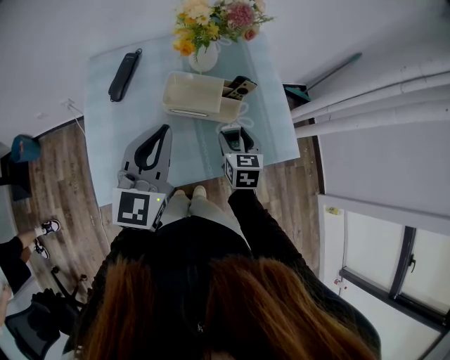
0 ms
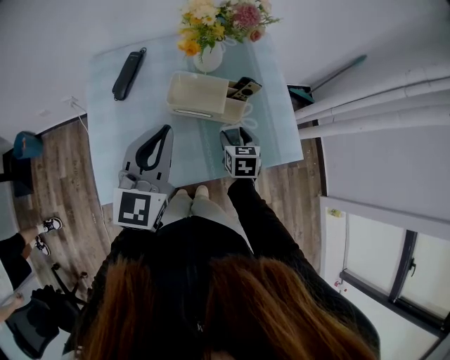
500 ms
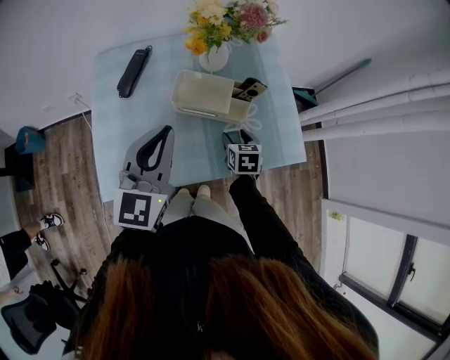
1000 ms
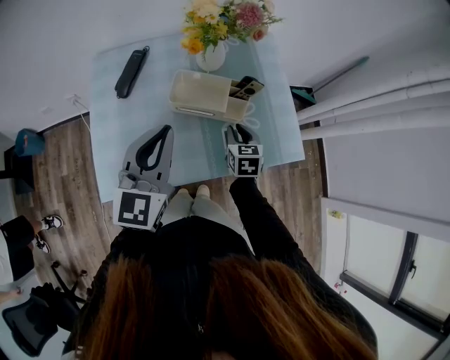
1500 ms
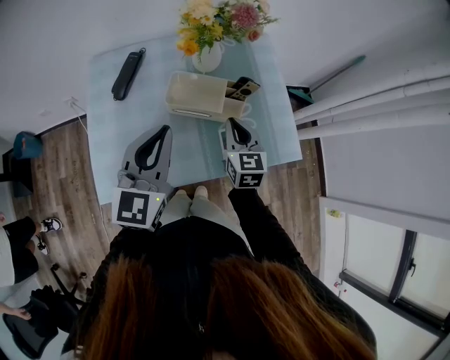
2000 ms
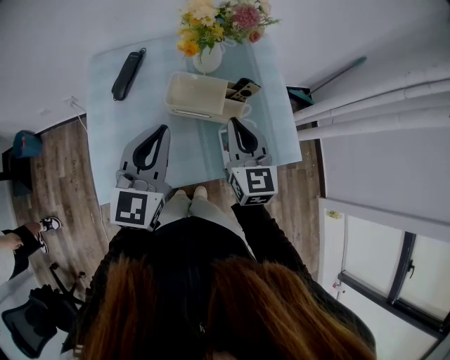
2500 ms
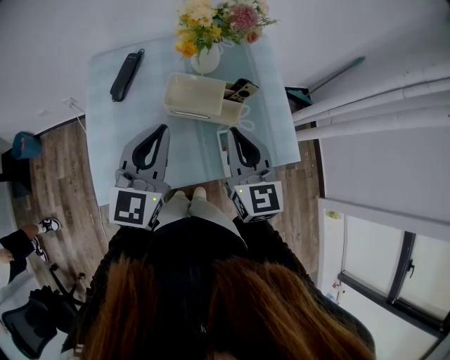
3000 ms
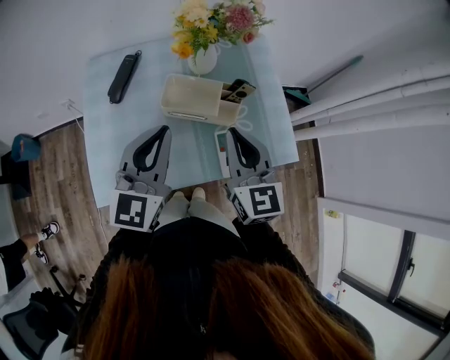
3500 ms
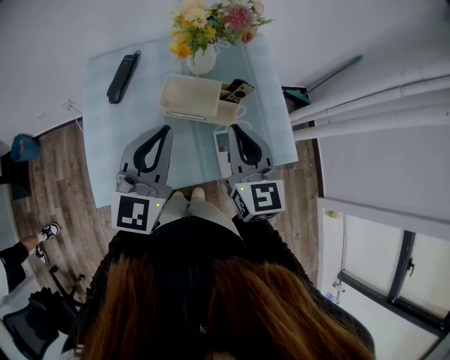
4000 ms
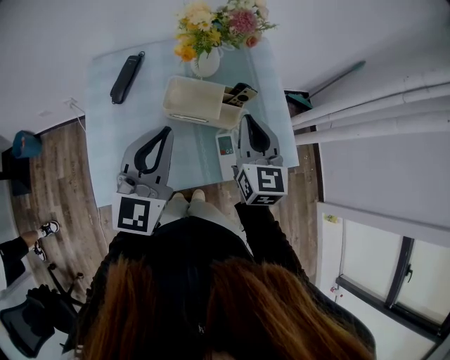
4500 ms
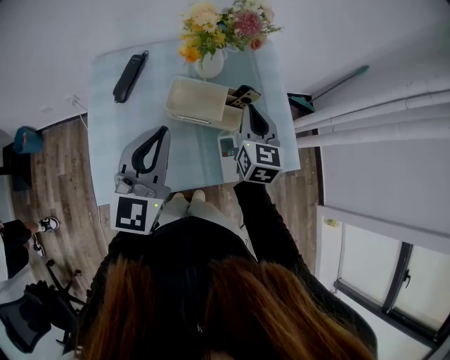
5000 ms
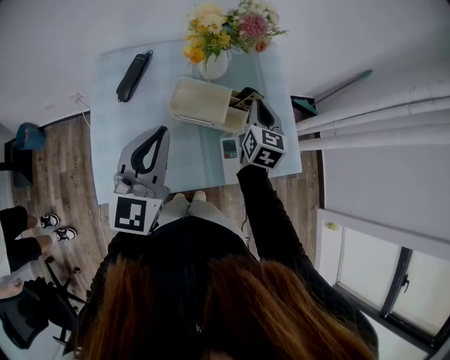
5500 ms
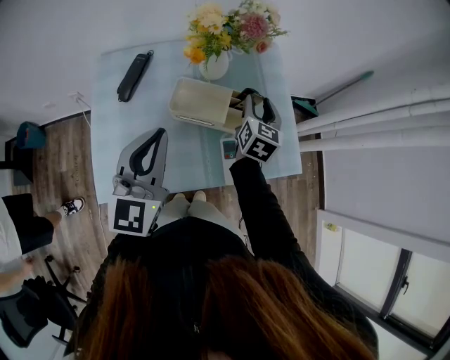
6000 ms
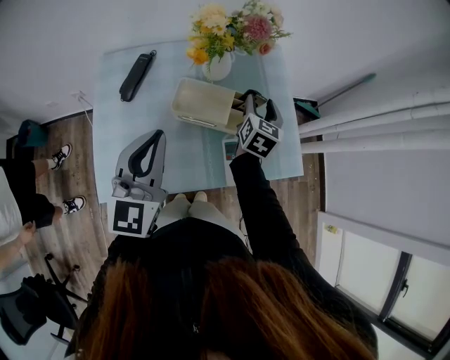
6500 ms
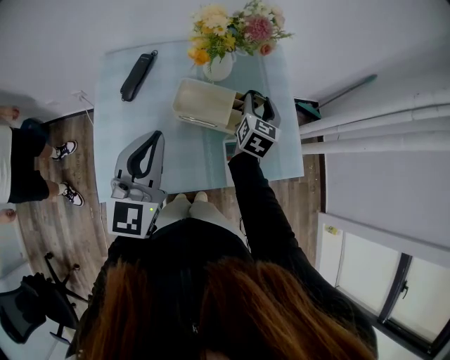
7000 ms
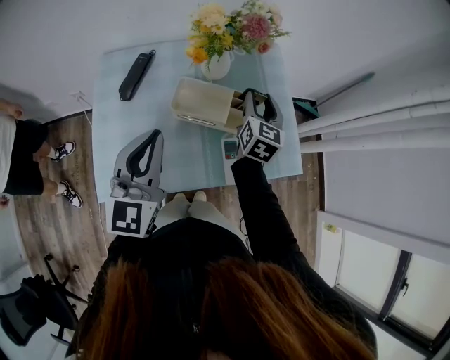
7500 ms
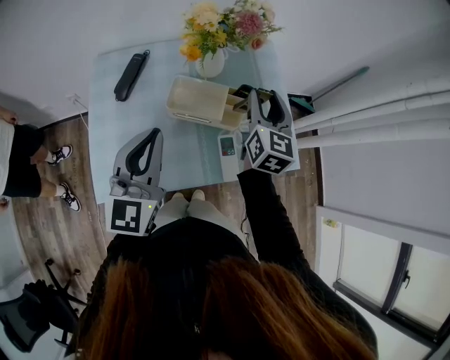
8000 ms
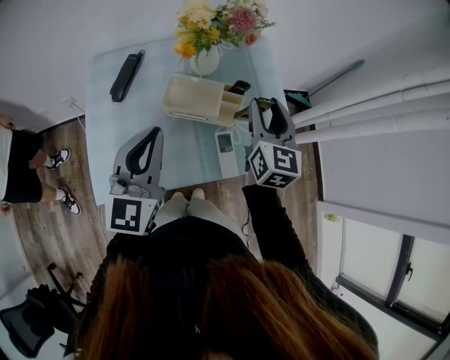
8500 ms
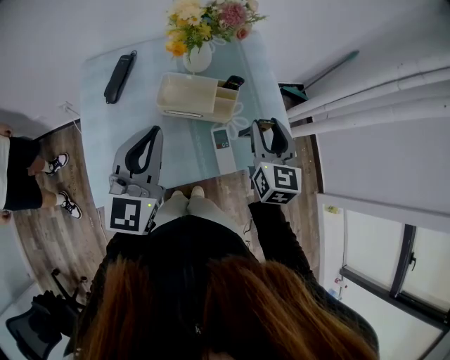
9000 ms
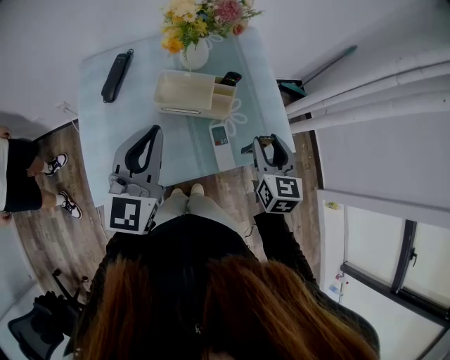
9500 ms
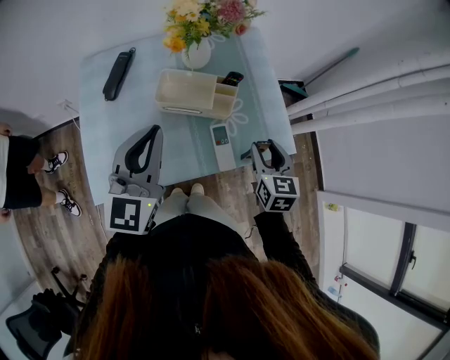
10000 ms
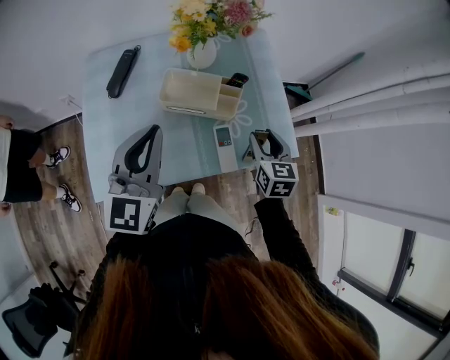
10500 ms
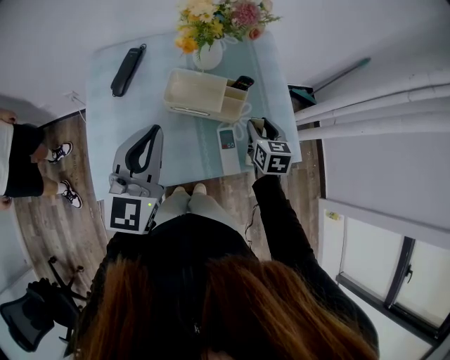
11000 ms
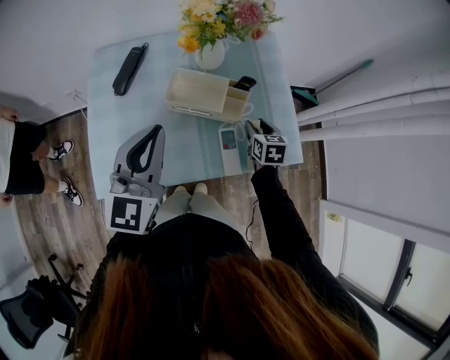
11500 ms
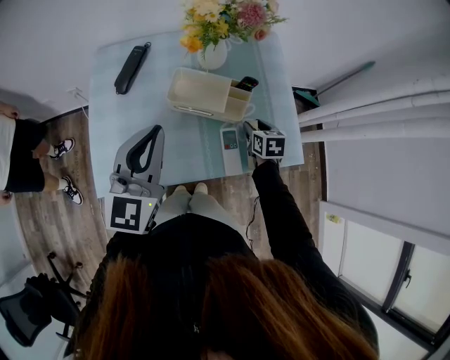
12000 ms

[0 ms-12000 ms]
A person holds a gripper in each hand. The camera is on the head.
0 ms to 2000 ms: The right gripper shifts by roughly 5 cm, and closes up.
2000 ms to 4000 ms: The right gripper travels upward by some 15 cm.
4000 ms to 6000 ms: The right gripper shifts some 20 cm forward and downward, turns by roughly 30 degrees, and opens up.
6000 ms to 8000 ms: The right gripper goes about 10 cm upward.
8000 ms to 10000 ms: The right gripper is displaced backward, downward and to the right by about 20 cm, and turns by some 20 degrees.
10000 ms to 12000 ms: The right gripper shifts approximately 20 cm downward and forward, and rotates approximately 20 degrees.

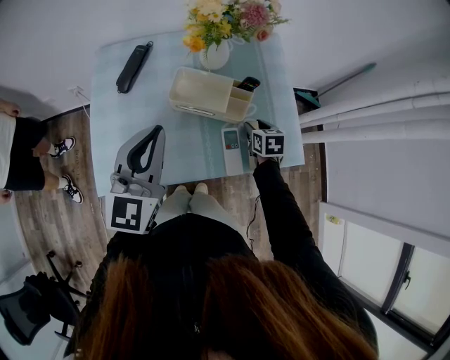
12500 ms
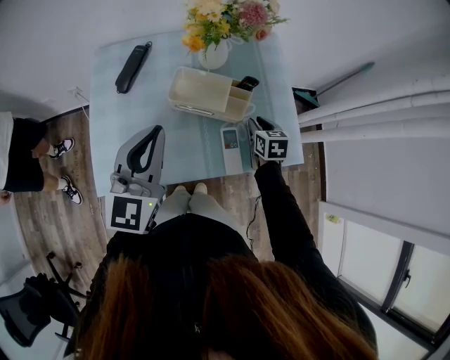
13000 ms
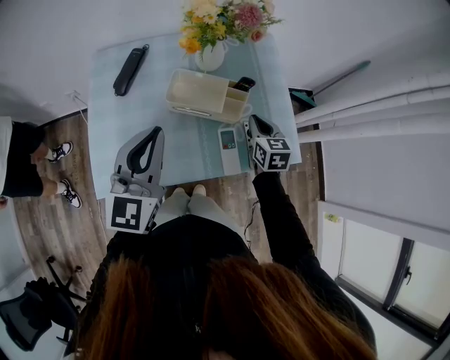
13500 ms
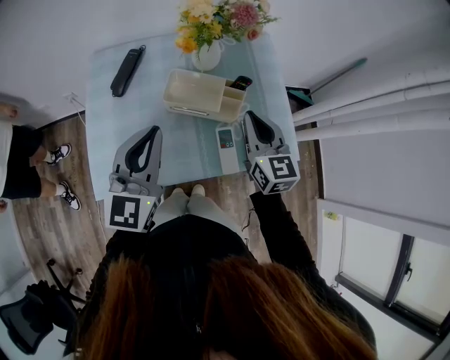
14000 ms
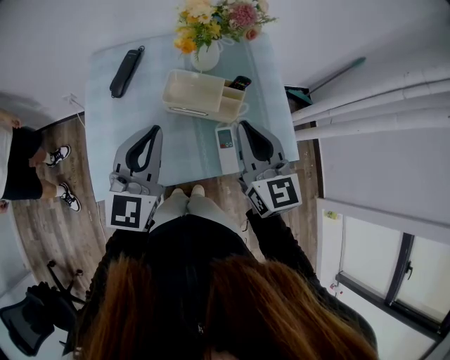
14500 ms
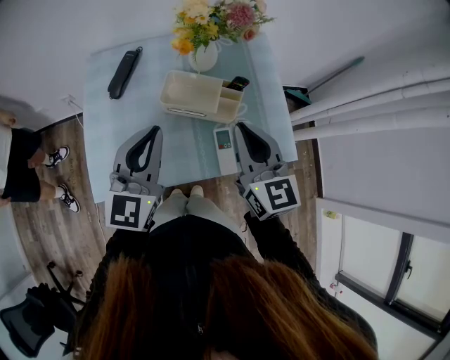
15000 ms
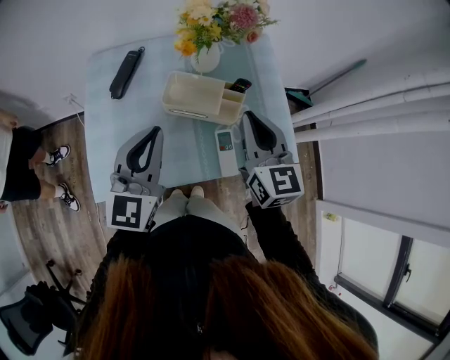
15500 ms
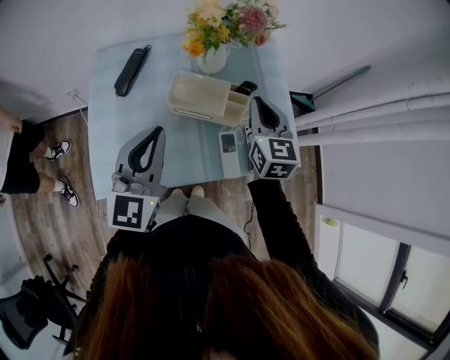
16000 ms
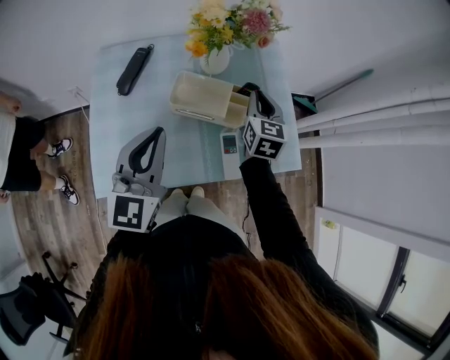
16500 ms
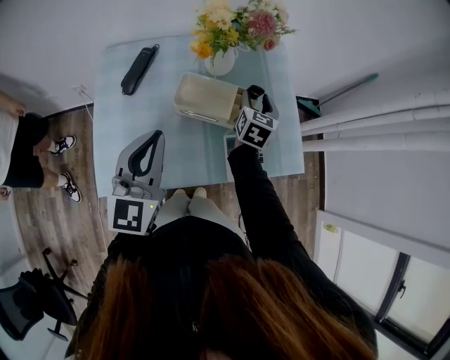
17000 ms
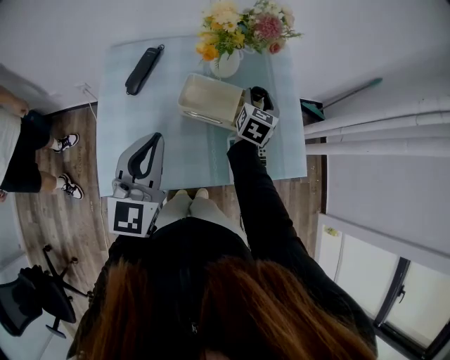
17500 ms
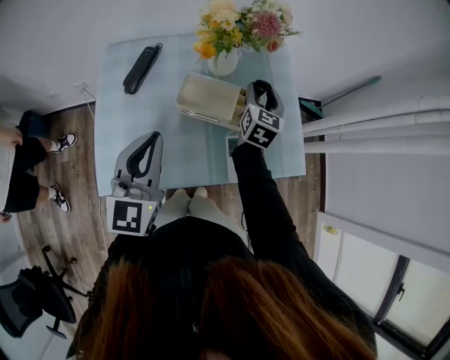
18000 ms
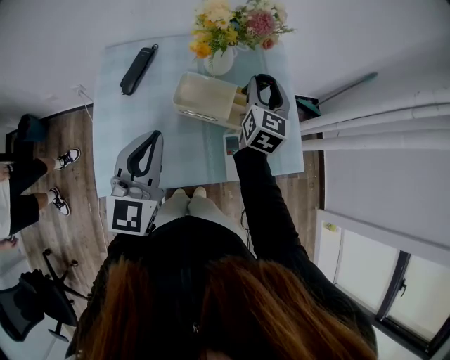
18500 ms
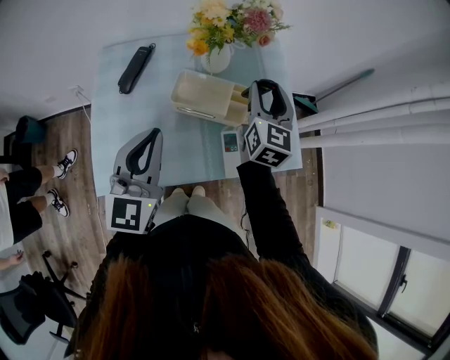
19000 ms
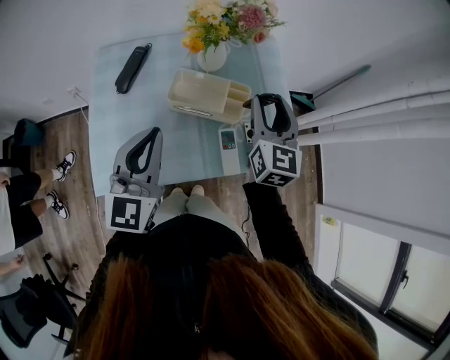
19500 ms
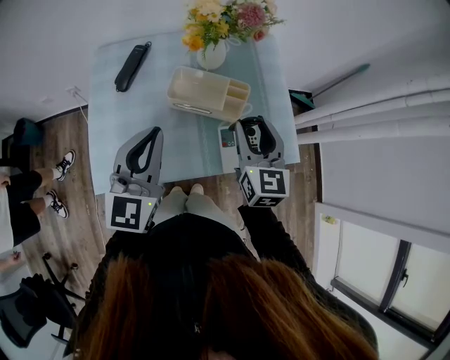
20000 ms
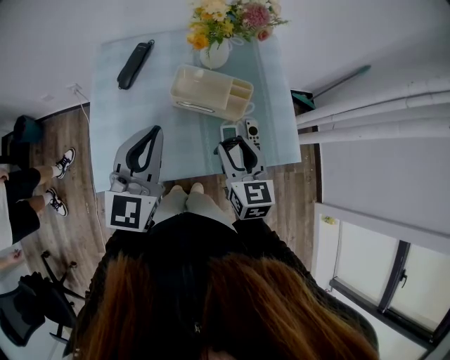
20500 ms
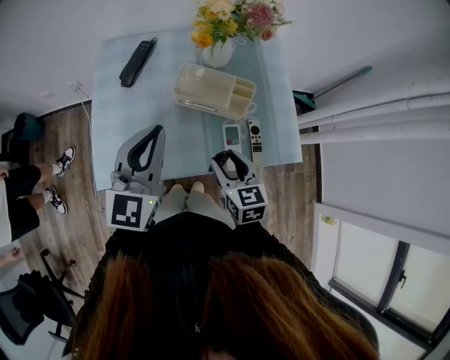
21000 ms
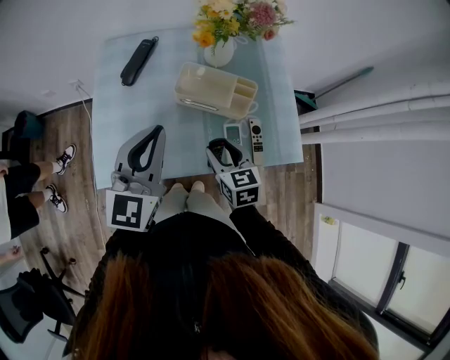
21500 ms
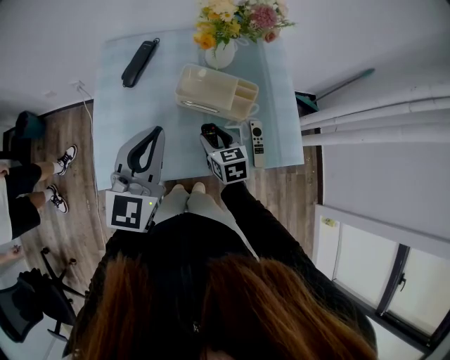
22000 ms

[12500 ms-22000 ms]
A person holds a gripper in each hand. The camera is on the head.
12500 ms to 14500 ms: The right gripper shifts about 30 cm upward, tilts its fingers roughly 40 degrees upward, and closes.
14500 ms to 16500 ms: The right gripper travels forward and downward by approximately 15 cm, and turns by roughly 20 degrees.
16500 ms to 18000 ms: The right gripper opens.
18000 ms to 20000 ms: The right gripper is displaced backward and upward by some 20 cm.
20000 ms to 22000 ms: The right gripper travels downward and to the left by some 20 cm, and changes its angle by approximately 30 degrees.

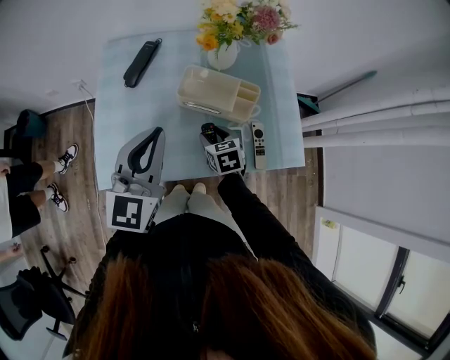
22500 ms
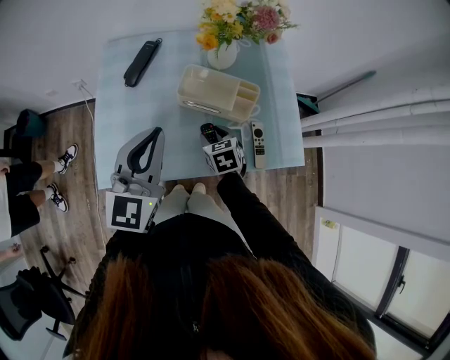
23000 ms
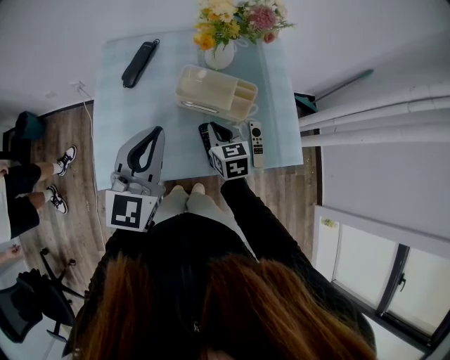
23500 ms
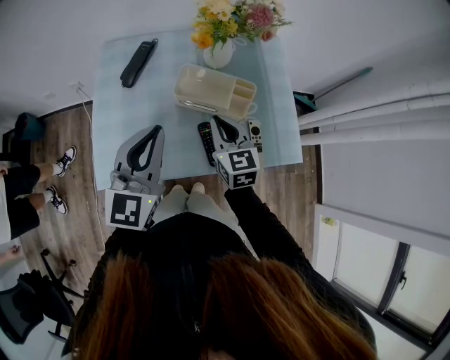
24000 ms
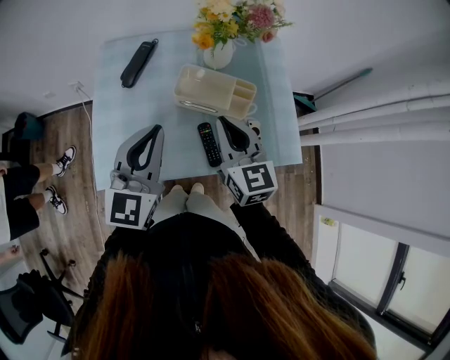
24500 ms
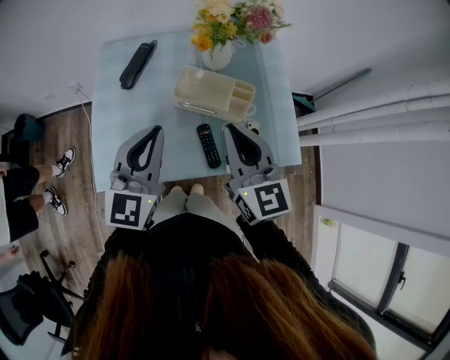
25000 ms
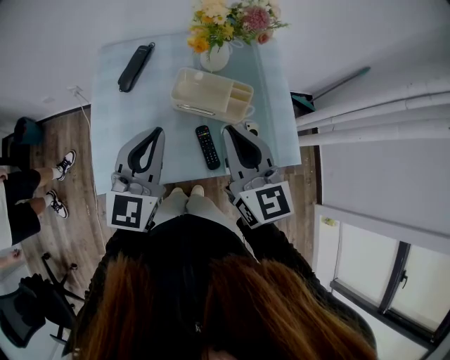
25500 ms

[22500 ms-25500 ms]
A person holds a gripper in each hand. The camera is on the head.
22500 ms to 24000 ms: The right gripper travels upward by about 15 cm, rotates roughly 30 degrees, and closes up.
24000 ms to 25500 ms: The right gripper shifts roughly 15 cm upward.

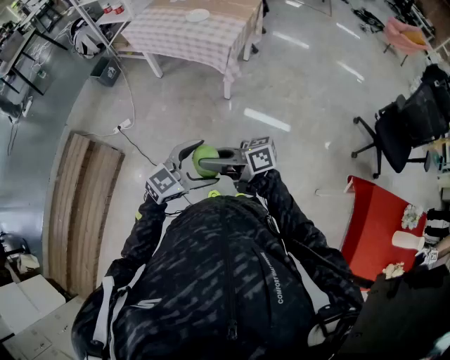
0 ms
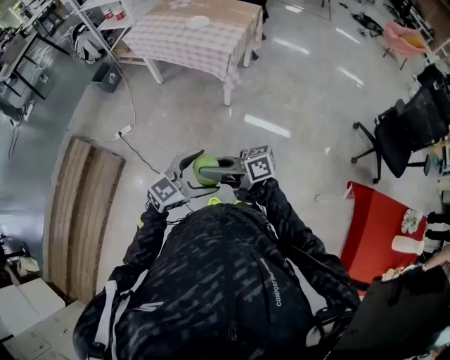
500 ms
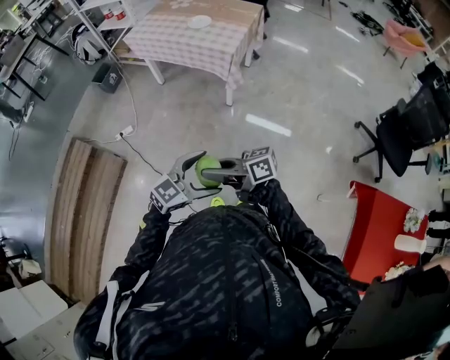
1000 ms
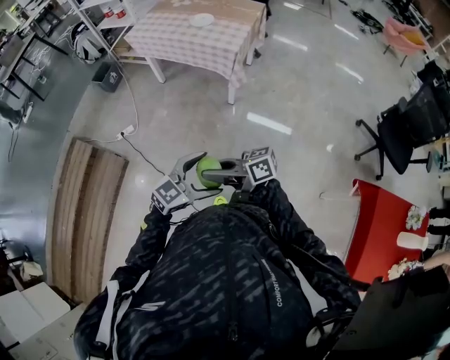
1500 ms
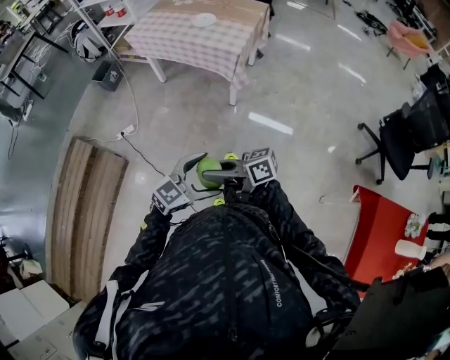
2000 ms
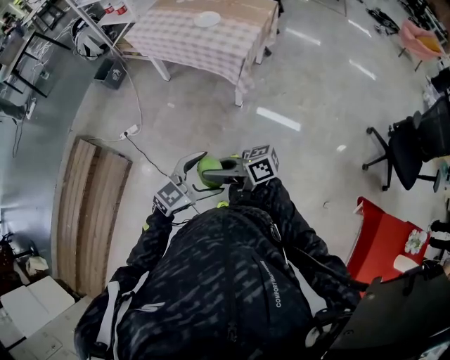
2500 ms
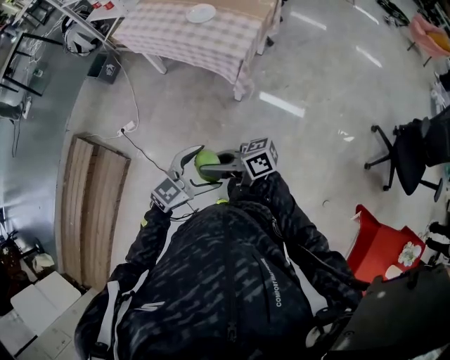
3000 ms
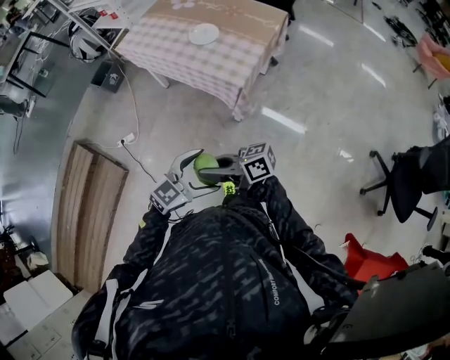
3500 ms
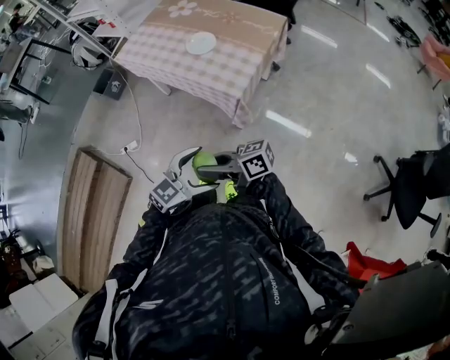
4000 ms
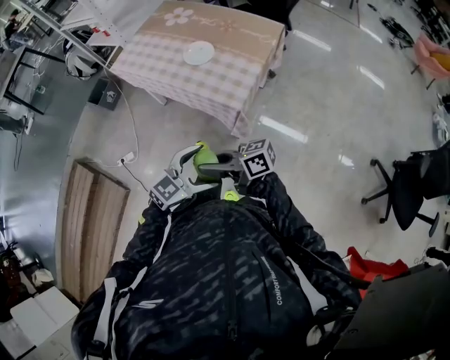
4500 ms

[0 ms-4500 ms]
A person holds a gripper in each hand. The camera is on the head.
0 ms to 2000 ms: The right gripper shifts by about 5 cm. Meanwhile the left gripper changes place by roughly 5 cm.
2000 ms to 4500 ms: The left gripper changes place by about 40 cm; the right gripper moves roughly 40 cm.
